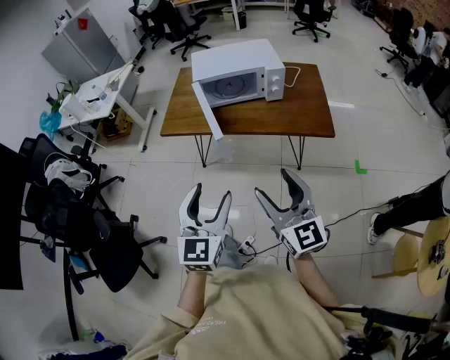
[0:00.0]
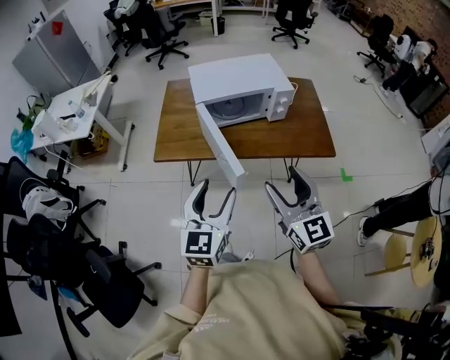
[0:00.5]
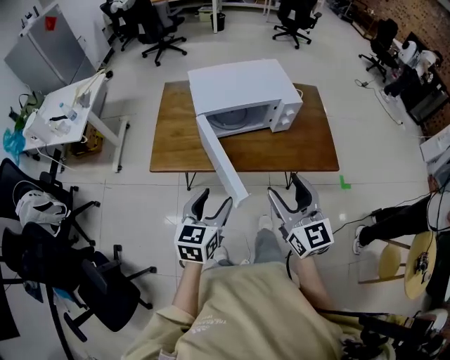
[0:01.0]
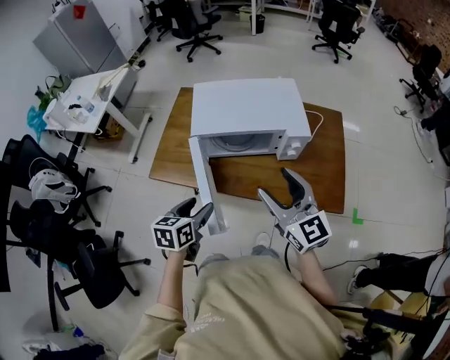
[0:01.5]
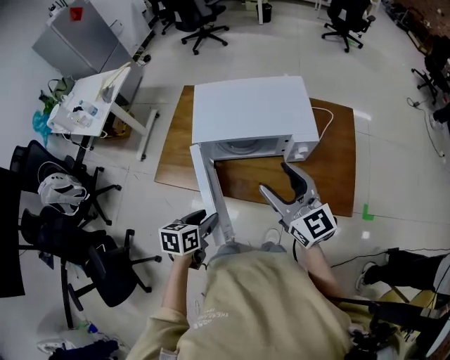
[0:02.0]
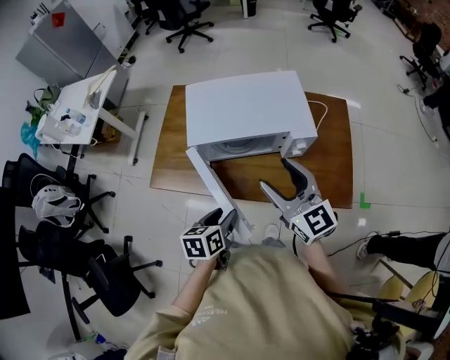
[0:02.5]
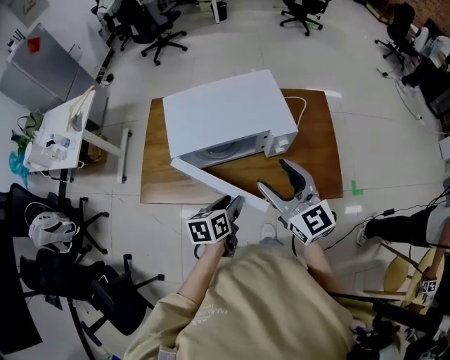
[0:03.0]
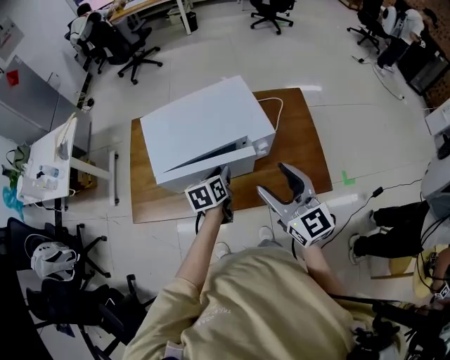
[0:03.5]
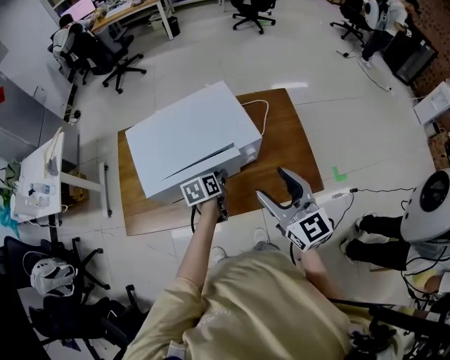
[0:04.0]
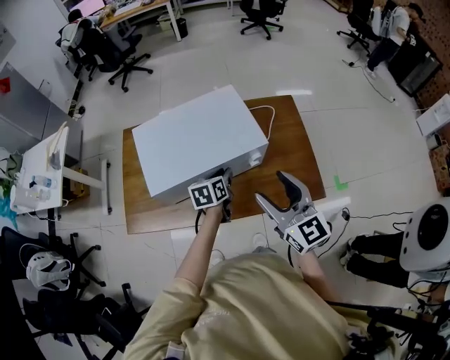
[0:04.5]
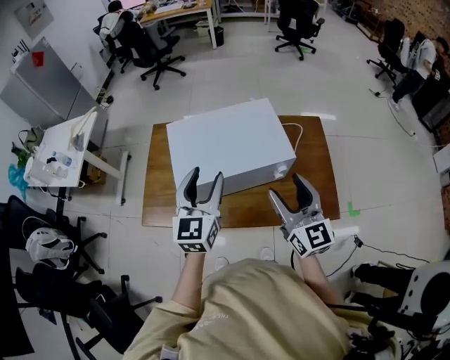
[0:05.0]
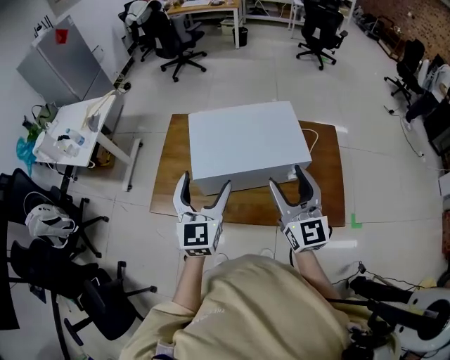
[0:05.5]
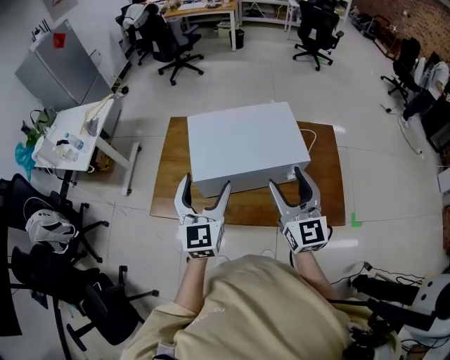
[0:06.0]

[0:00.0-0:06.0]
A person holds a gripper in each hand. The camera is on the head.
0:00.0 to 0:02.0: The two grippers travel together, forward, some 50 cm. The left gripper goes roughly 20 cm downward, and tips its fingers downward by about 40 degrees.
0:02.0 to 0:04.0: The left gripper shifts roughly 25 cm forward and to the right, while the right gripper is displaced upward by roughly 5 cm, and turns by about 20 degrees.
0:04.0 to 0:06.0: The right gripper goes about 10 cm to the left and backward. The left gripper heads upward, backward and to the left, covering approximately 35 cm, angles its fingers upward, by roughly 40 degrees, and opens up.

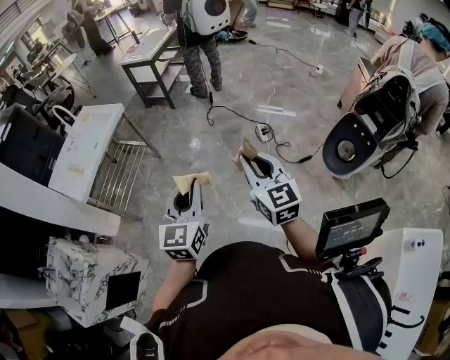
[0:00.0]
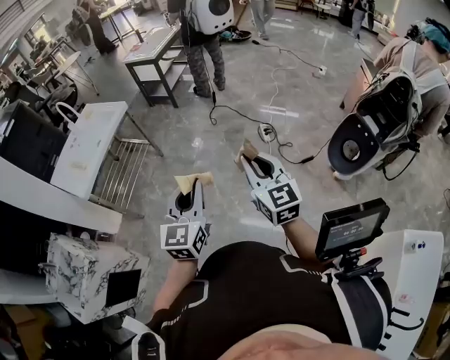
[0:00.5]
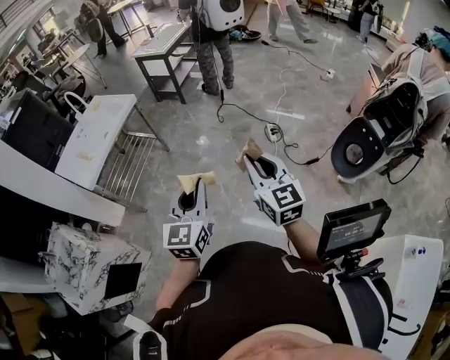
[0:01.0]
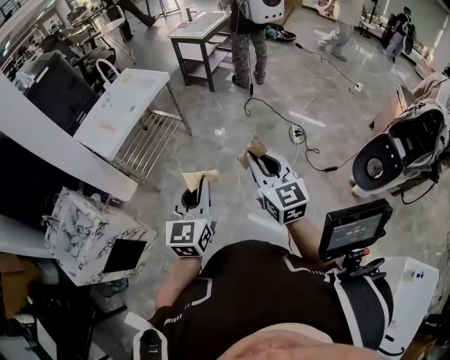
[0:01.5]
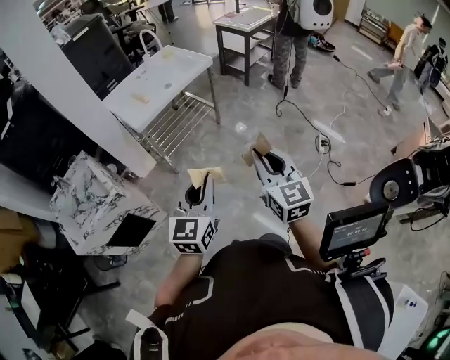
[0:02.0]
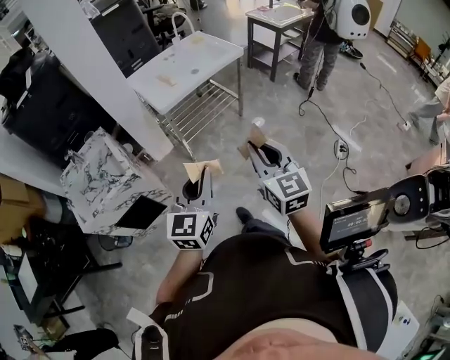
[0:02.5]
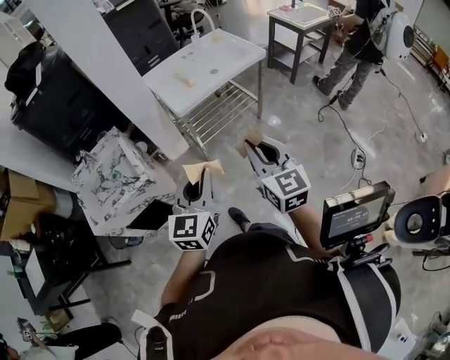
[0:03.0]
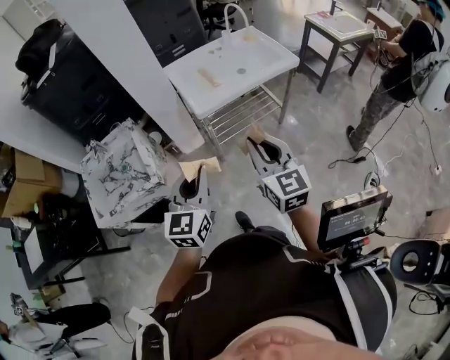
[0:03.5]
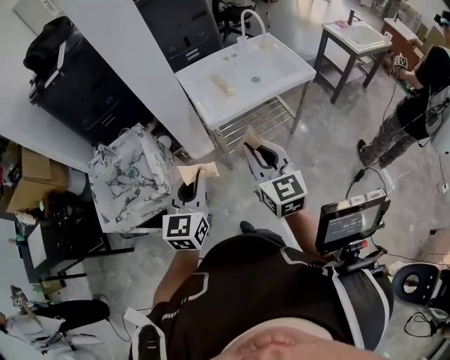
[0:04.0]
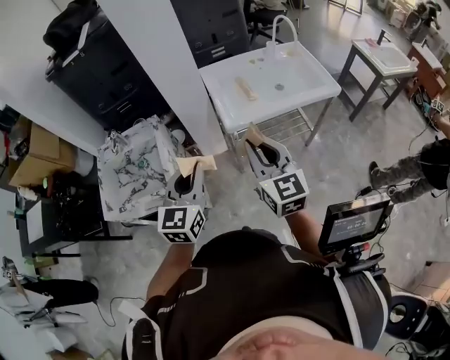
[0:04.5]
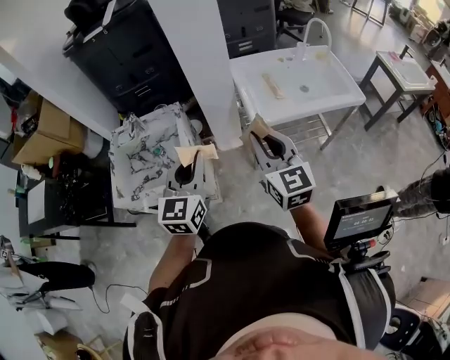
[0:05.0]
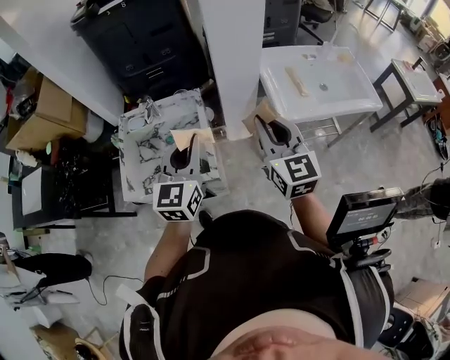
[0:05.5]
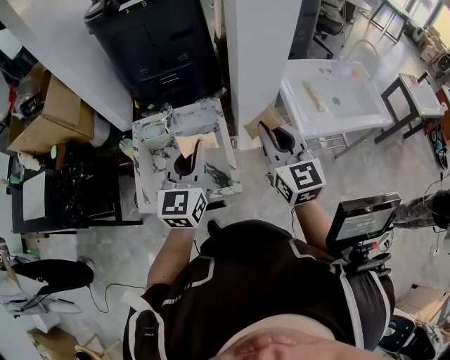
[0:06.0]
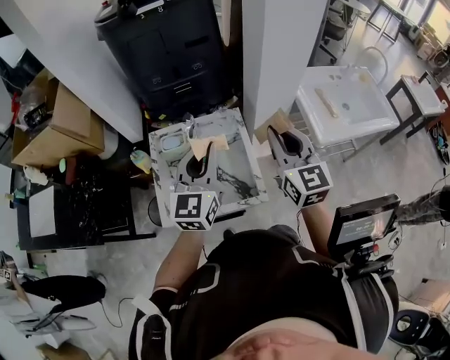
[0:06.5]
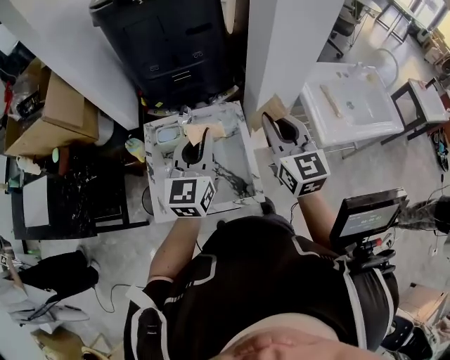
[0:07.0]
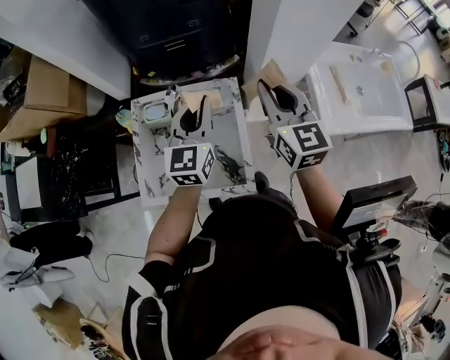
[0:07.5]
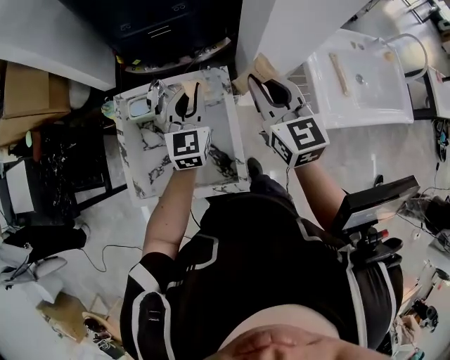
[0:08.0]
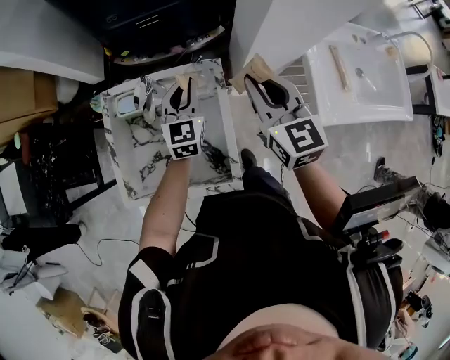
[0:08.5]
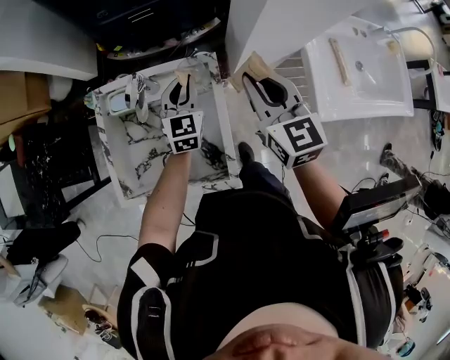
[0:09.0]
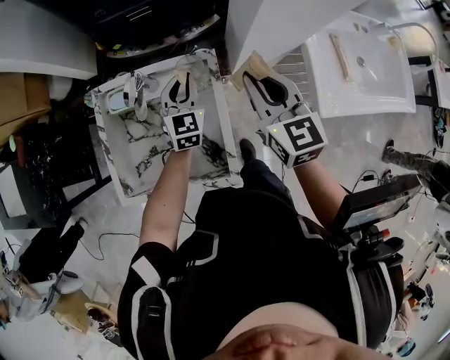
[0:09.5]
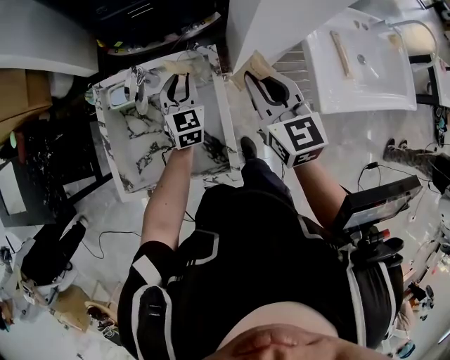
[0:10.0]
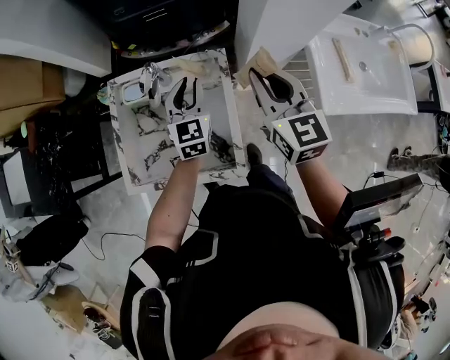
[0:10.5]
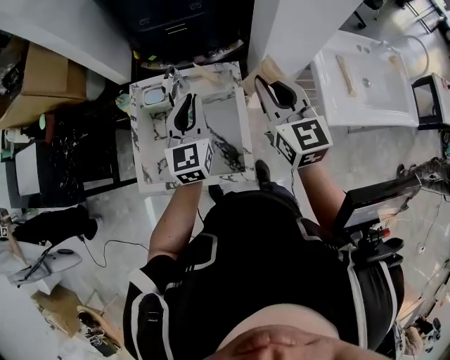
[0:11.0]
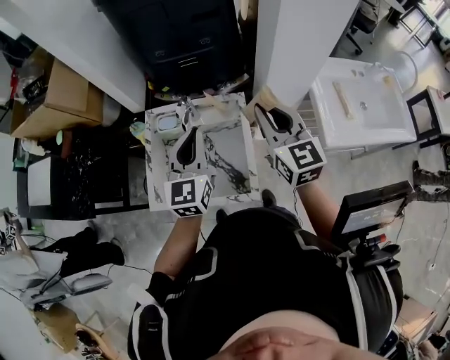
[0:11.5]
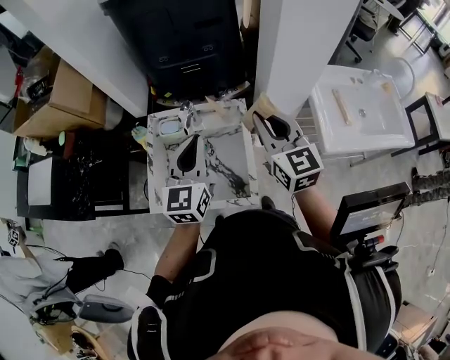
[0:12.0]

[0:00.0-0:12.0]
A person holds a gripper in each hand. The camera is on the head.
0:00.0 to 0:02.0: Both grippers travel together to the left, roughly 25 cm. The right gripper turns by some 20 degrees; the left gripper swivels some 20 degrees.
0:02.0 to 0:04.0: The right gripper ends up roughly 35 cm from where it was, and swivels some 30 degrees. Meanwhile the left gripper changes place by approximately 30 cm, and rotates approximately 30 degrees.
0:04.0 to 0:06.0: The grippers both shift to the left and forward by about 35 cm.
0:06.0 to 0:08.0: The left gripper is displaced forward and downward by roughly 25 cm. The right gripper travels forward by some 20 cm.
0:08.0 to 0:10.0: The left gripper moves downward, some 15 cm, while the right gripper shifts roughly 5 cm downward.
0:10.0 to 0:12.0: The left gripper travels upward and backward by roughly 30 cm, and rotates some 20 degrees. The right gripper moves upward, backward and to the left, some 15 cm.

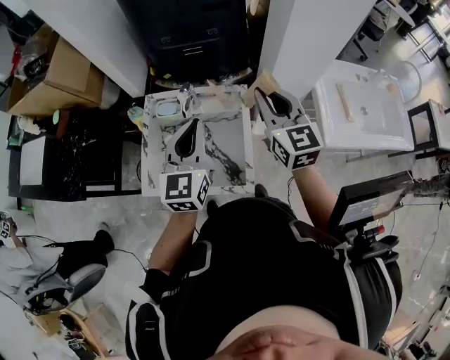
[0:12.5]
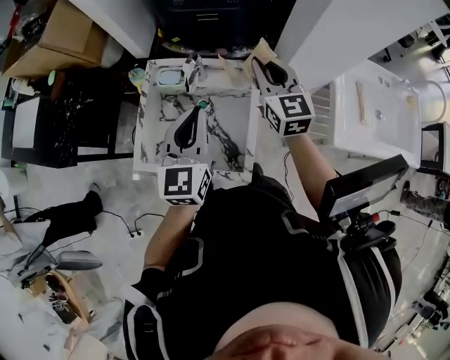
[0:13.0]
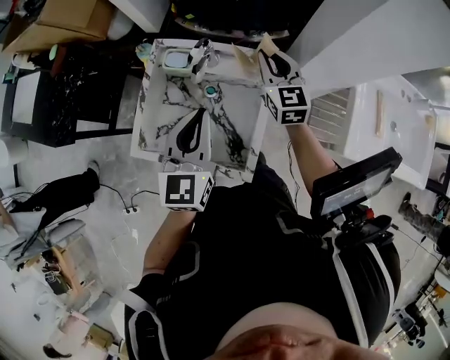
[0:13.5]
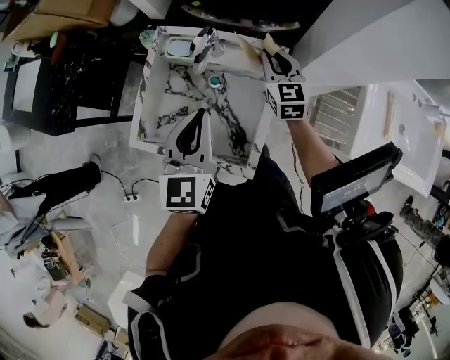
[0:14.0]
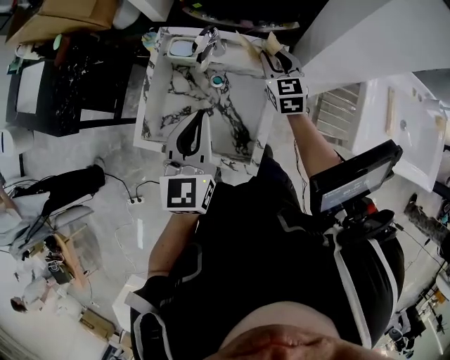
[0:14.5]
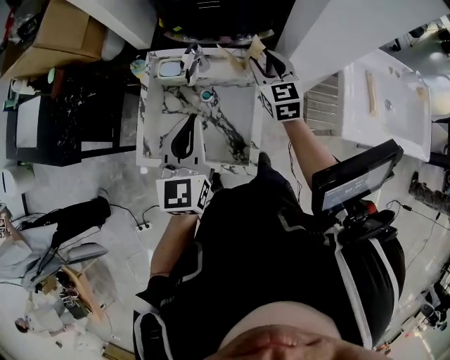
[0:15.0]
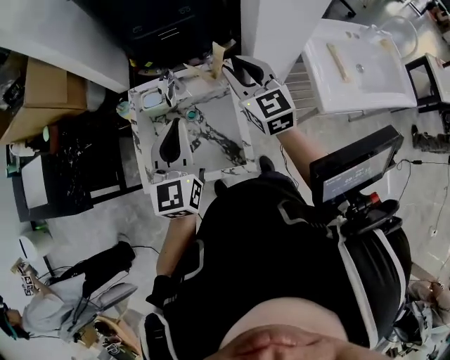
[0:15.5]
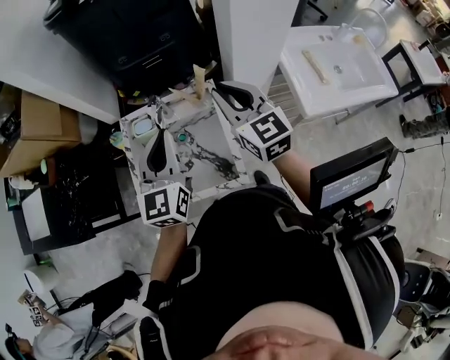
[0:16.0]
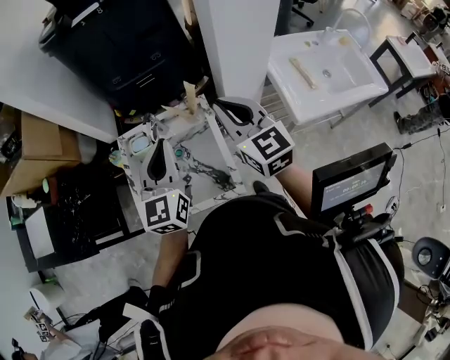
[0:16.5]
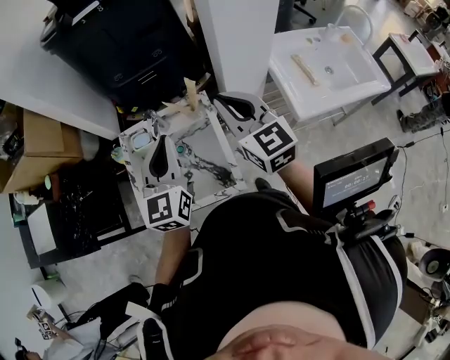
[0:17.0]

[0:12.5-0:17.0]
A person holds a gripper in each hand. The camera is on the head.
0:12.5 to 0:14.5: The left gripper heads downward, covering some 10 cm. Meanwhile the right gripper travels downward and forward by about 30 cm.
0:14.5 to 0:17.0: The left gripper moves upward, roughly 10 cm, and turns by approximately 20 degrees. Meanwhile the right gripper is displaced upward and backward by about 30 cm, rotates roughly 20 degrees, and closes its fingers.

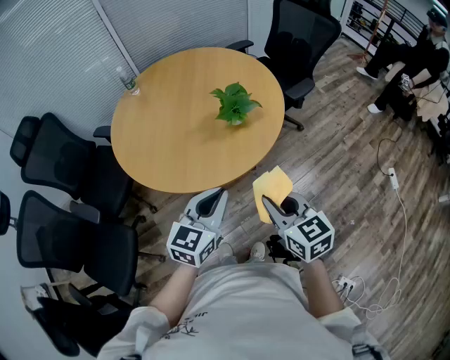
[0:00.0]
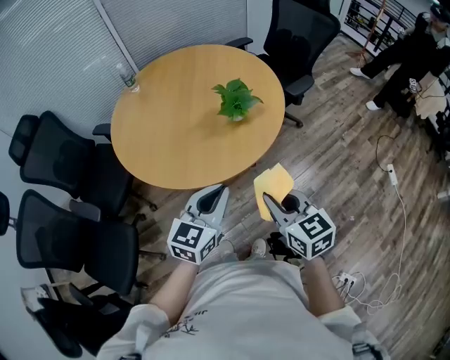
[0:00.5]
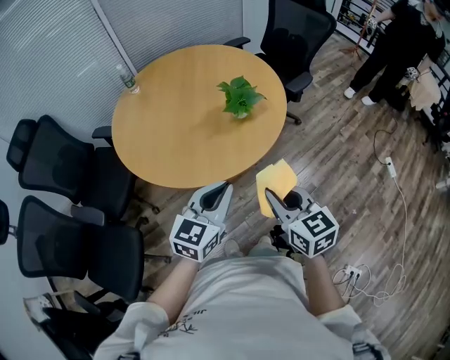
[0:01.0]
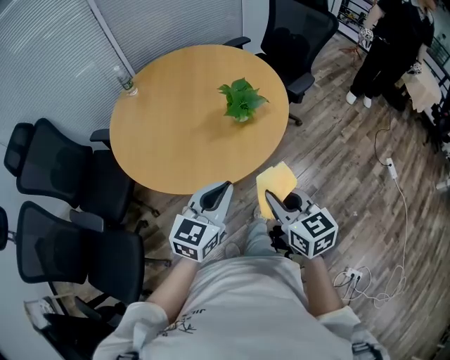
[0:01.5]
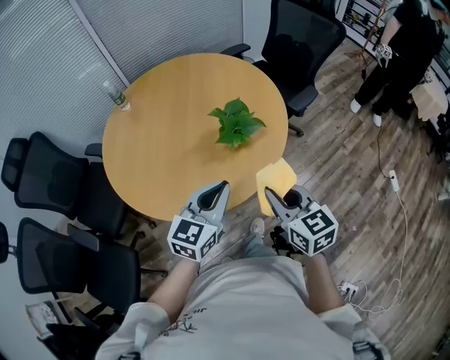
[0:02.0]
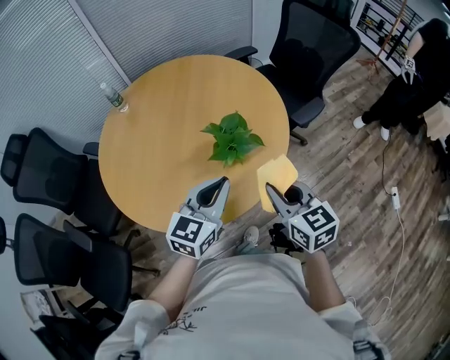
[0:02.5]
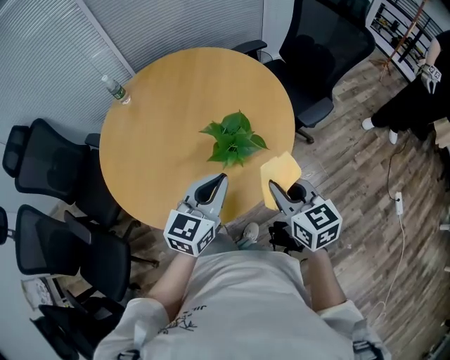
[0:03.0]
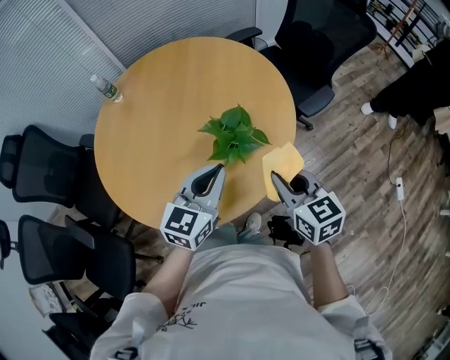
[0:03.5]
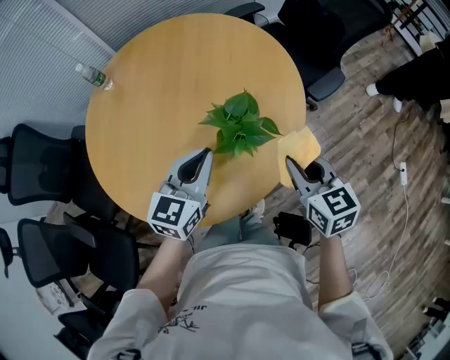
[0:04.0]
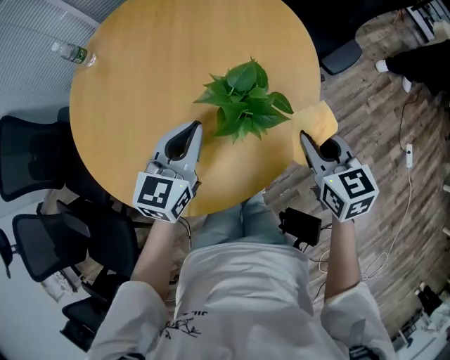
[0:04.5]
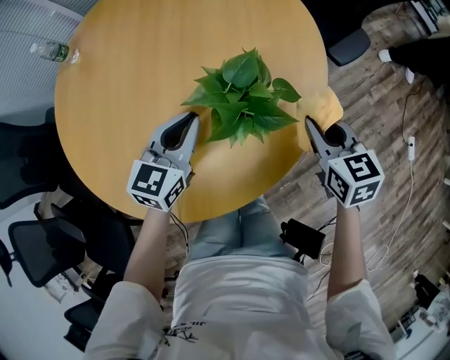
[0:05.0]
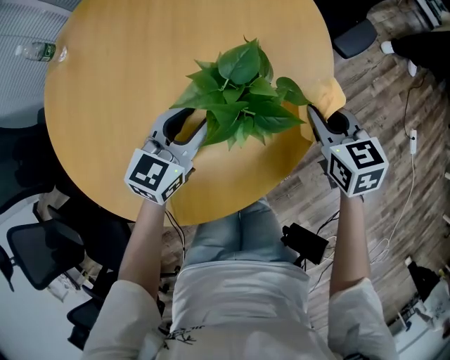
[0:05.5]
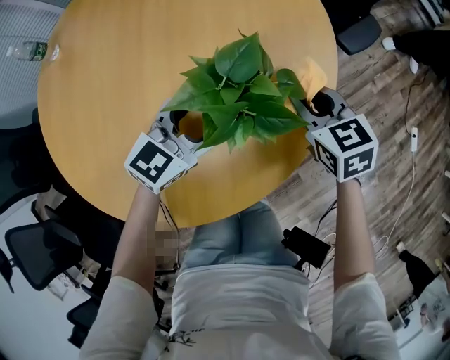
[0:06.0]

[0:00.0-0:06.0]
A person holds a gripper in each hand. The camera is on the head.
0:00.0 to 0:02.0: Both grippers move forward, approximately 15 cm.
0:02.0 to 0:04.0: Both grippers move forward, about 20 cm.
0:04.0 to 0:06.0: Both grippers move downward and forward, roughly 20 cm. The left gripper turns by approximately 30 degrees, and opens up.
